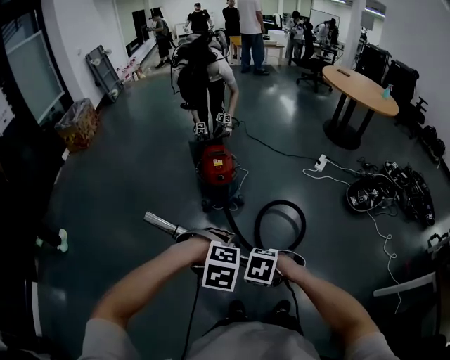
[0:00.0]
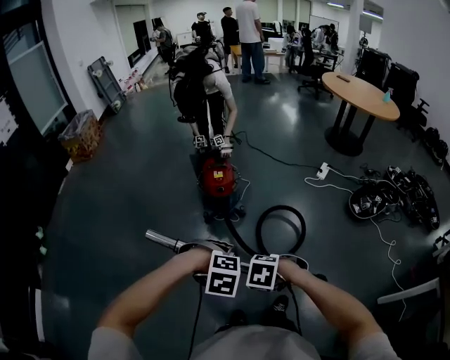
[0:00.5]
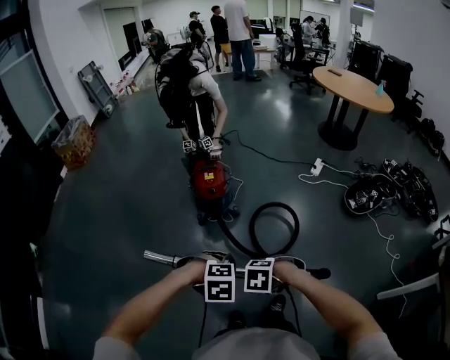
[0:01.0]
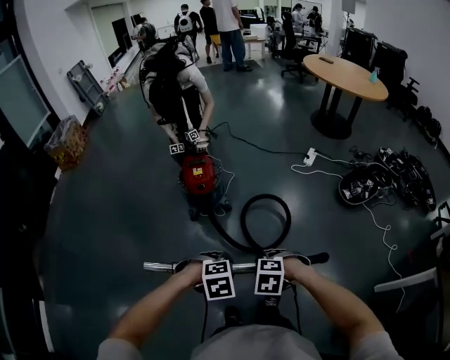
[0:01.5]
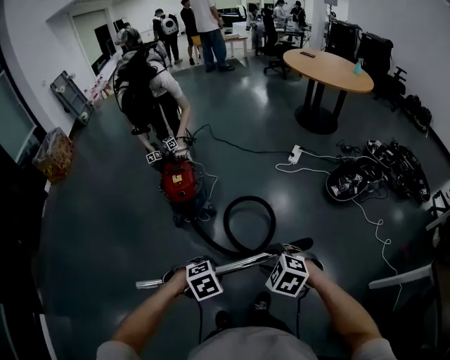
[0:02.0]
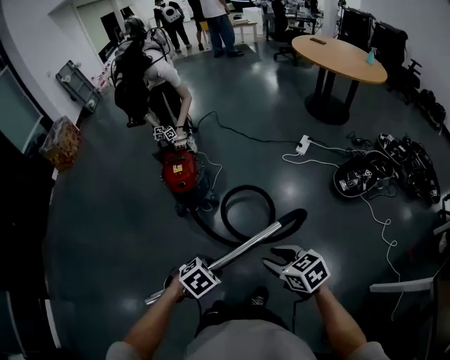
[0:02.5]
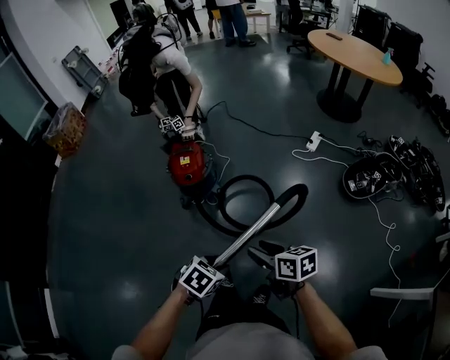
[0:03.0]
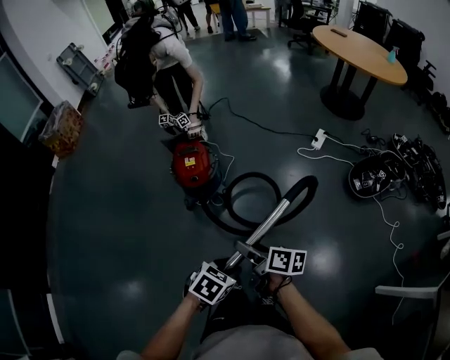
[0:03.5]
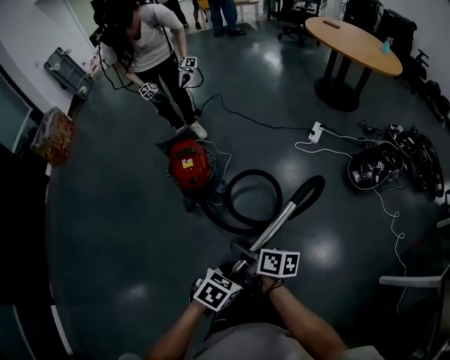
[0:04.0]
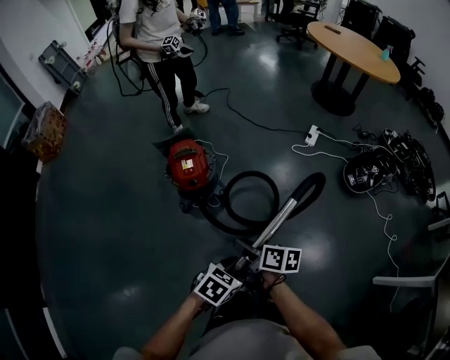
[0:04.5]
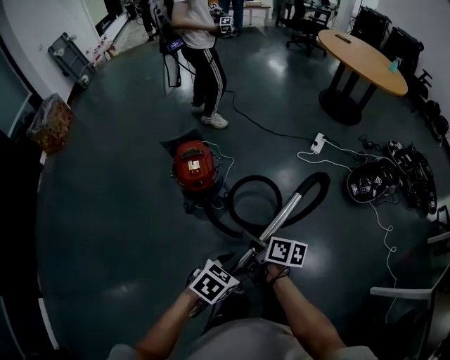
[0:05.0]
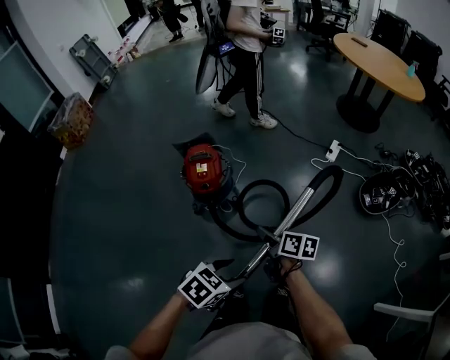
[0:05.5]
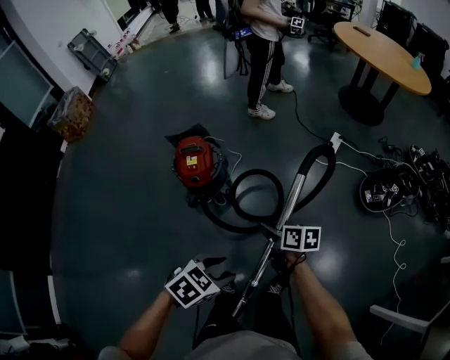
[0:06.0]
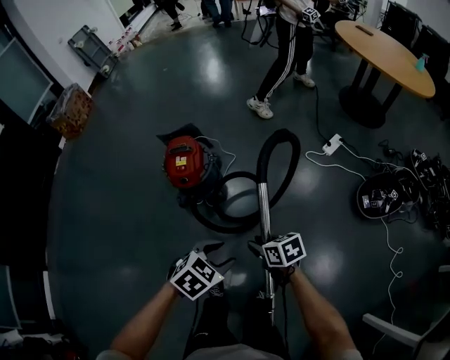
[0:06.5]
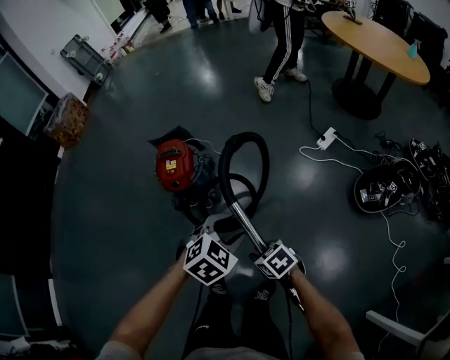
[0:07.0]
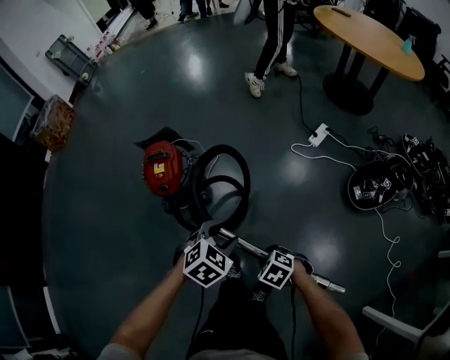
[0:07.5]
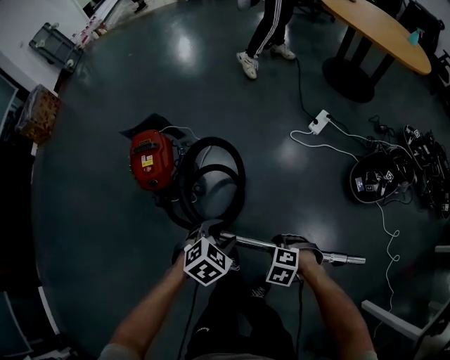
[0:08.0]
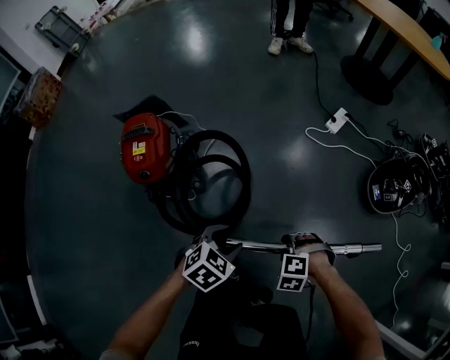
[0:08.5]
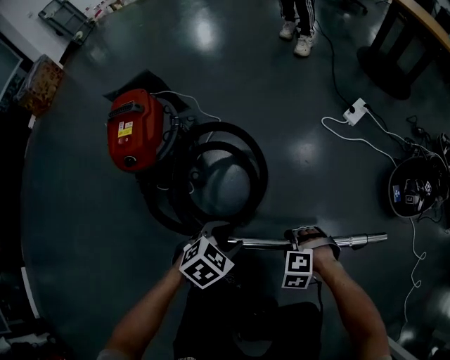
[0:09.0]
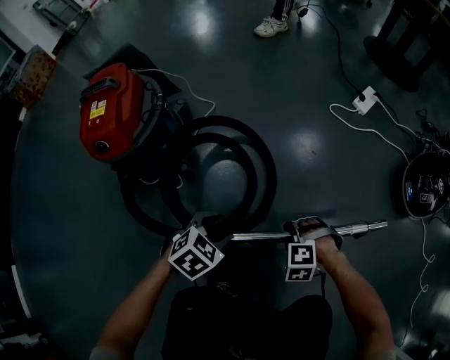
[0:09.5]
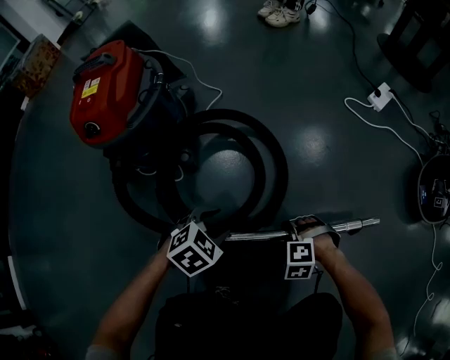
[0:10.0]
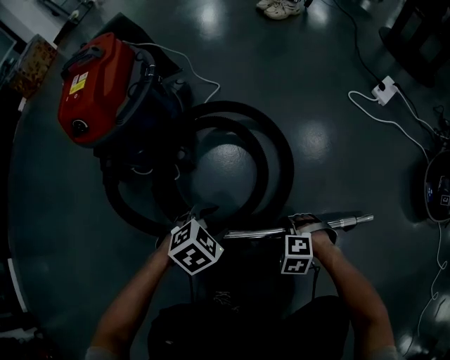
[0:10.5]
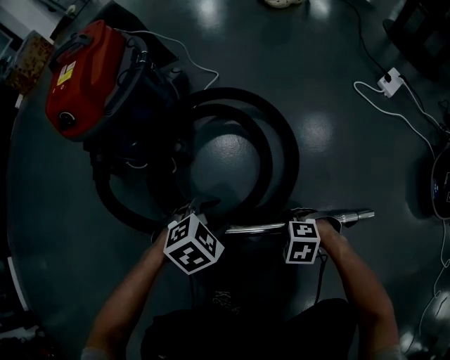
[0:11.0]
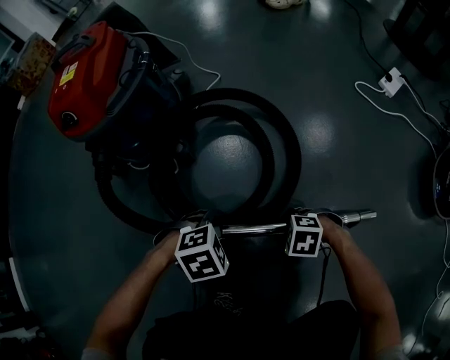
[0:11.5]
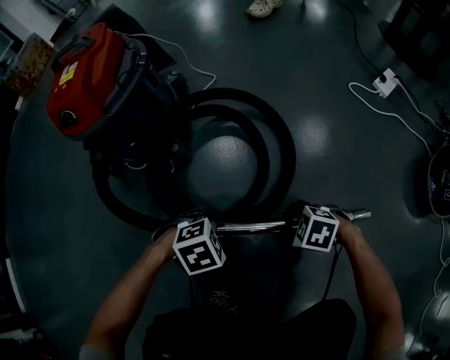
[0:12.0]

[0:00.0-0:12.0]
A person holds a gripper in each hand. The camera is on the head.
0:00.0 to 0:02.0: The left gripper changes place by roughly 20 cm, and swivels some 30 degrees. Meanwhile the right gripper changes place by some 25 cm, and rotates some 30 degrees.
0:02.0 to 0:04.0: The left gripper moves roughly 10 cm, and rotates roughly 40 degrees. Meanwhile the right gripper ends up some 25 cm from where it was, and rotates around the line of its fingers by about 90 degrees, clockwise from behind.
0:04.0 to 0:06.0: The right gripper is displaced forward and to the right by roughly 20 cm; the left gripper travels forward by about 5 cm.
0:06.0 to 0:08.0: The left gripper ends up about 30 cm from where it was, while the right gripper is displaced downward by roughly 15 cm, and rotates around the line of its fingers by about 80 degrees, counterclockwise from behind.
0:08.0 to 0:10.0: The two grippers go approximately 50 cm downward. The right gripper rotates about 30 degrees.
0:10.0 to 0:12.0: The left gripper shifts some 5 cm downward, and changes its angle by some 20 degrees. The right gripper rotates approximately 30 degrees, and opens up.

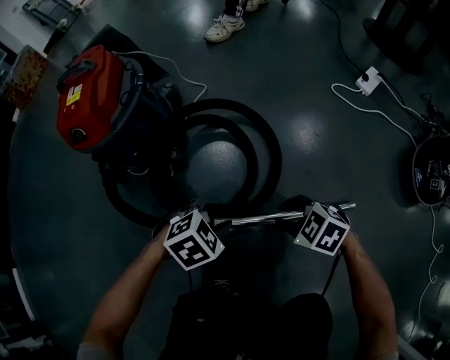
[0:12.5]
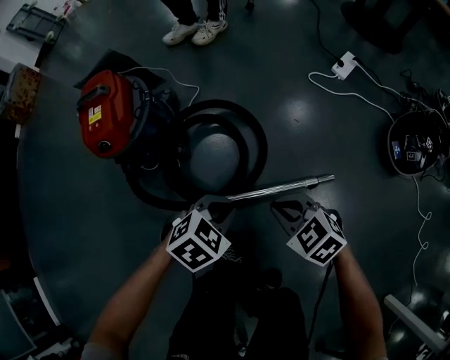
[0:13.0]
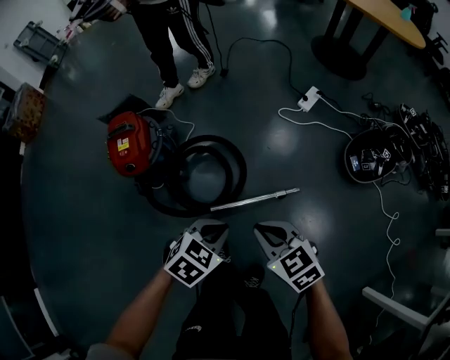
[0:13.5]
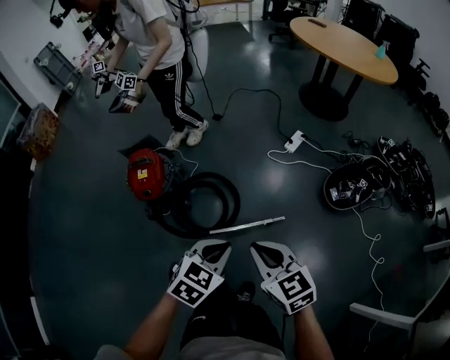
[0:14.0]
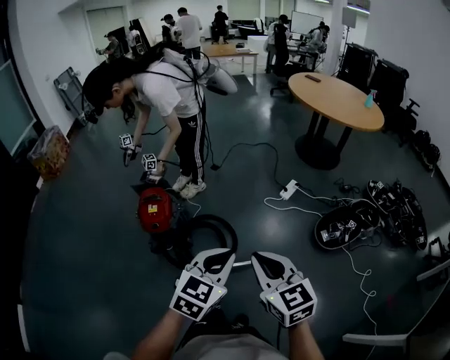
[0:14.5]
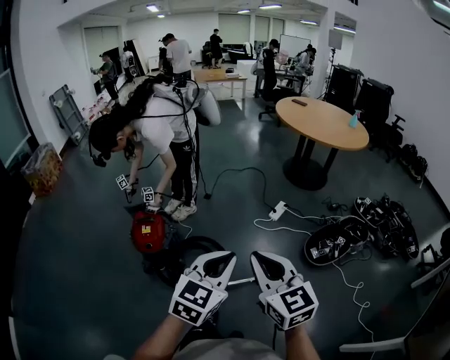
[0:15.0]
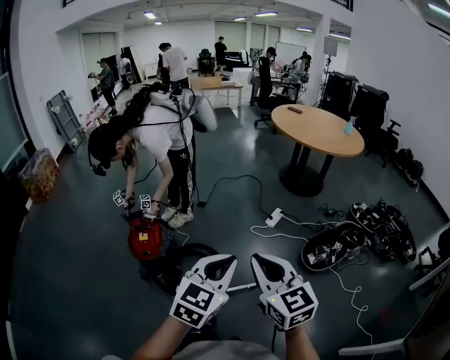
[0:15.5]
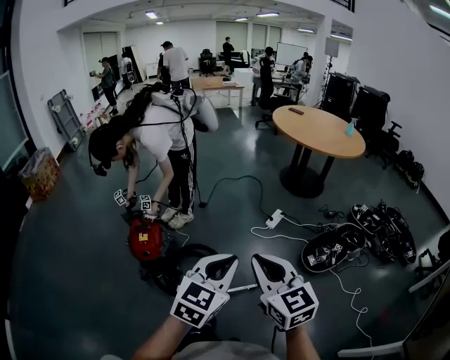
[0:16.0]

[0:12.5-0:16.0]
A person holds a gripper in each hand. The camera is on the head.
0:12.5 to 0:14.5: The grippers both shift upward by some 80 cm. The right gripper tilts its fingers some 40 degrees upward, and closes; the left gripper points its fingers roughly 40 degrees further upward, and closes.
0:14.5 to 0:16.0: The two grippers go about 10 cm upward.

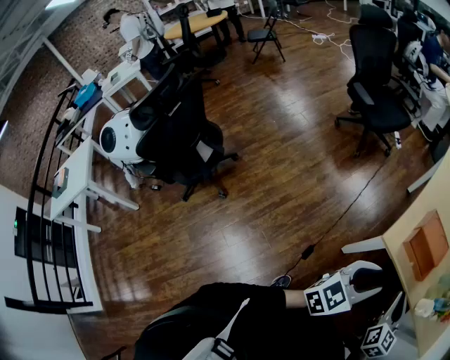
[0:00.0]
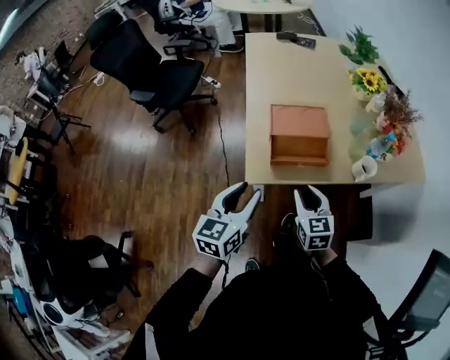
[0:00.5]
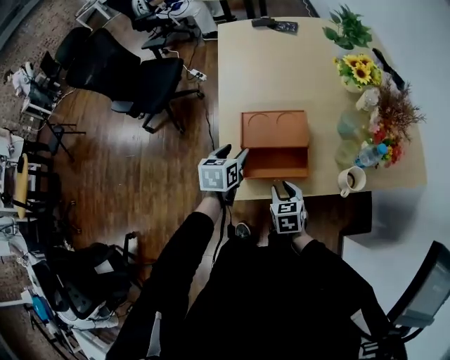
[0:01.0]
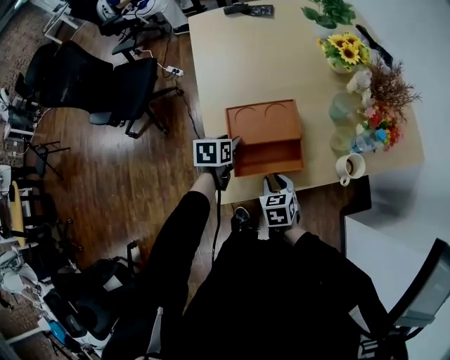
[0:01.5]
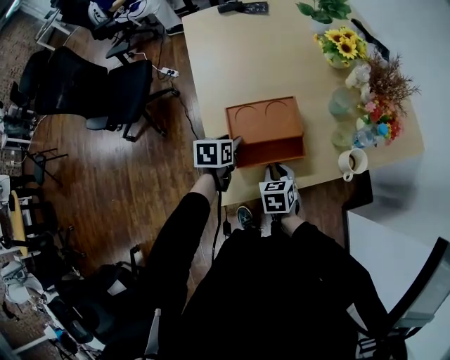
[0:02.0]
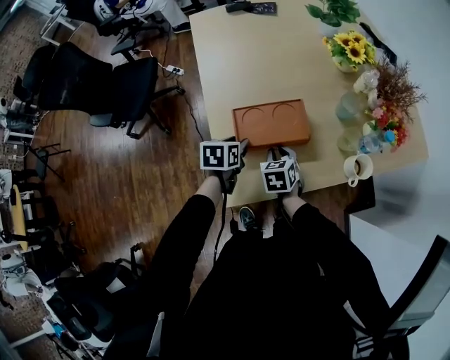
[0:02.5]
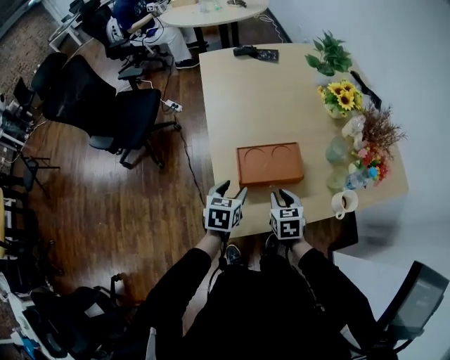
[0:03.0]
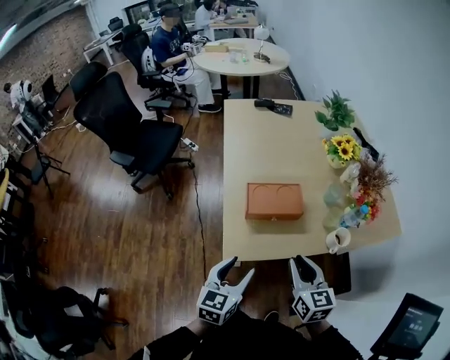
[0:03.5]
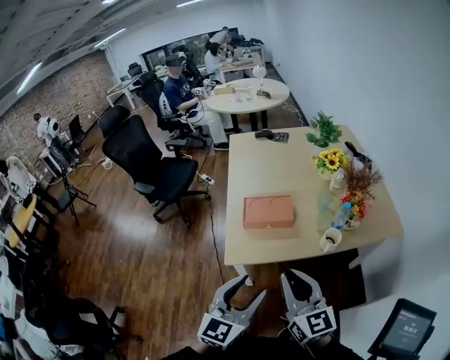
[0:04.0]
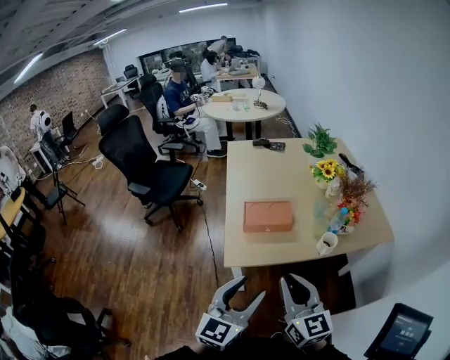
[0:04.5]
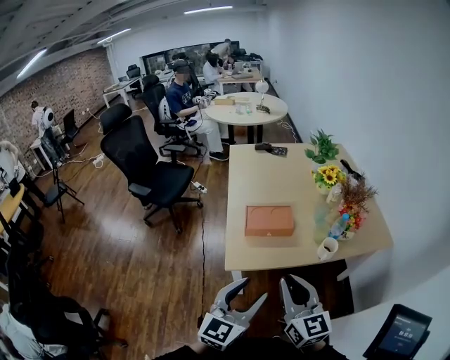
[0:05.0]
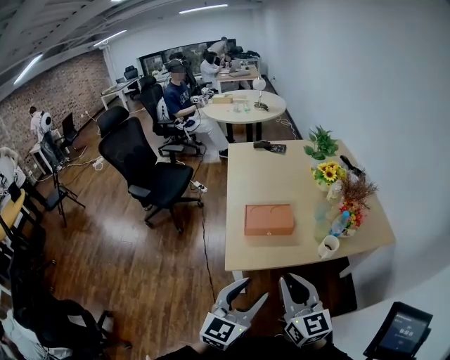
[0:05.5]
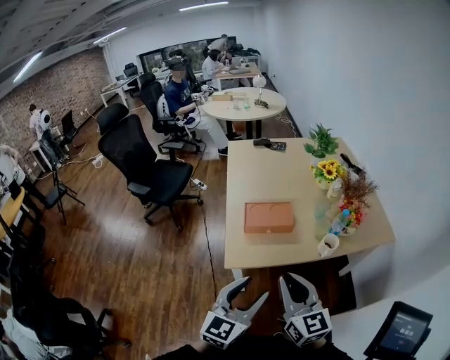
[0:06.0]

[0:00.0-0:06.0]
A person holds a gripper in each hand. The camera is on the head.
0:00.0 to 0:02.0: The grippers both shift forward and downward by about 50 cm. The right gripper angles its fingers downward, by roughly 30 degrees. Meanwhile the left gripper tilts its fingers about 50 degrees downward.
0:02.0 to 0:04.0: The right gripper is displaced upward and backward by some 40 cm, and tips its fingers upward by approximately 50 degrees. Meanwhile the left gripper is displaced backward and upward by roughly 50 cm, and tilts its fingers about 40 degrees upward.
0:04.0 to 0:06.0: The grippers move only a little.

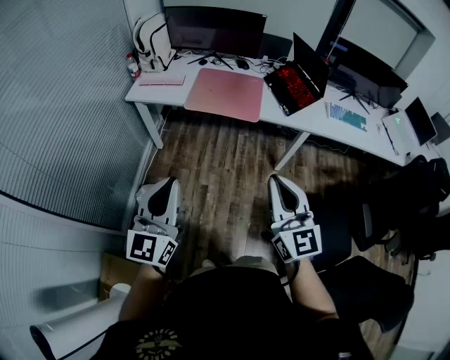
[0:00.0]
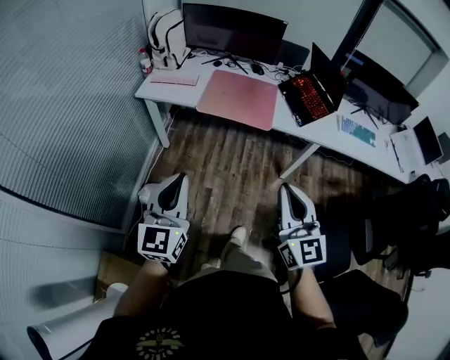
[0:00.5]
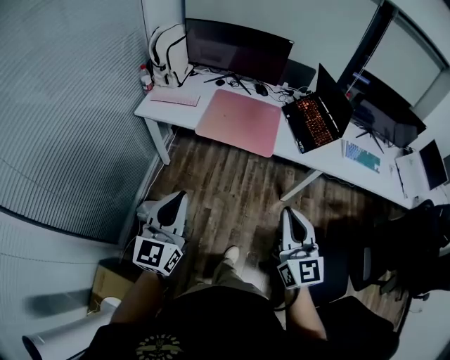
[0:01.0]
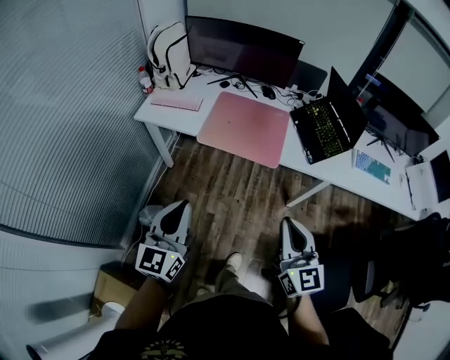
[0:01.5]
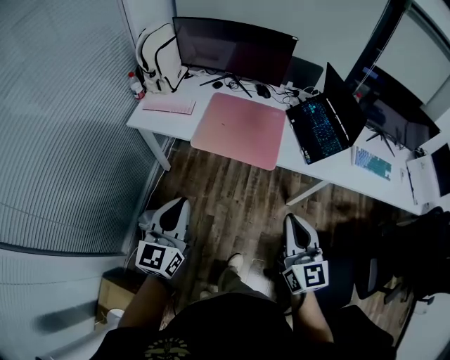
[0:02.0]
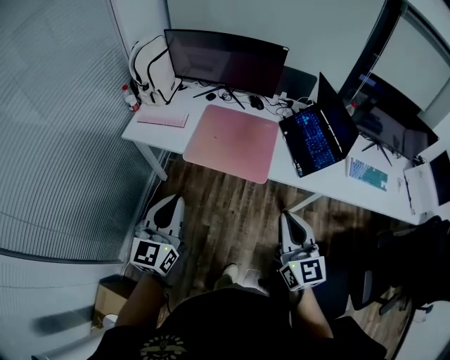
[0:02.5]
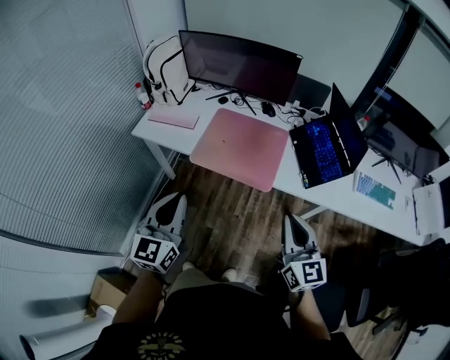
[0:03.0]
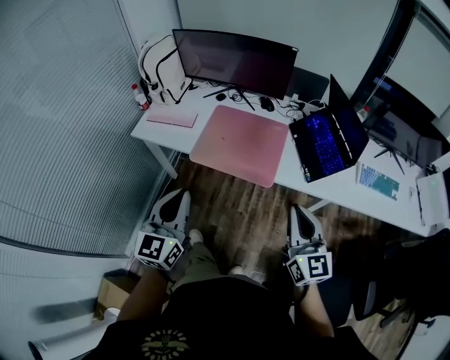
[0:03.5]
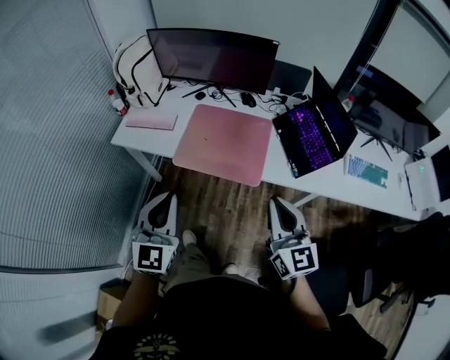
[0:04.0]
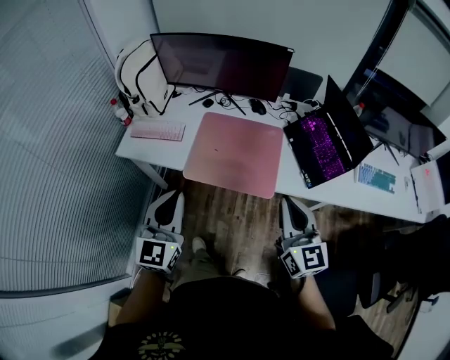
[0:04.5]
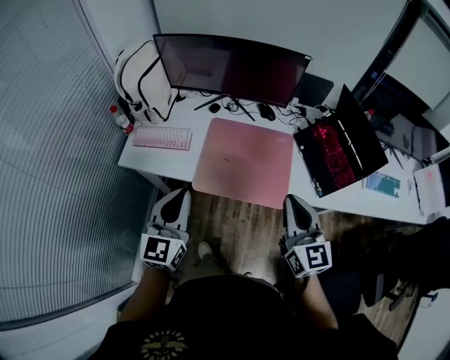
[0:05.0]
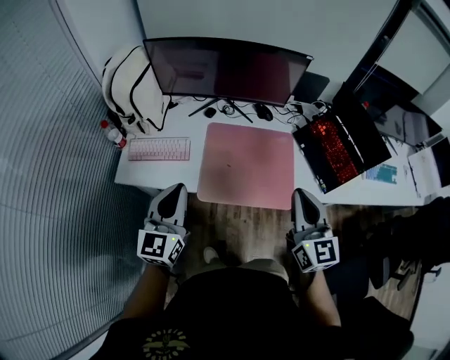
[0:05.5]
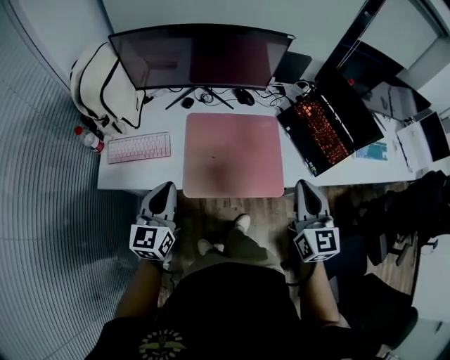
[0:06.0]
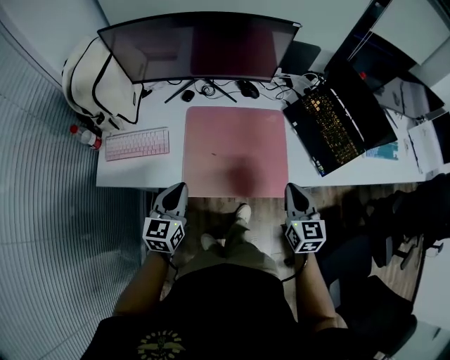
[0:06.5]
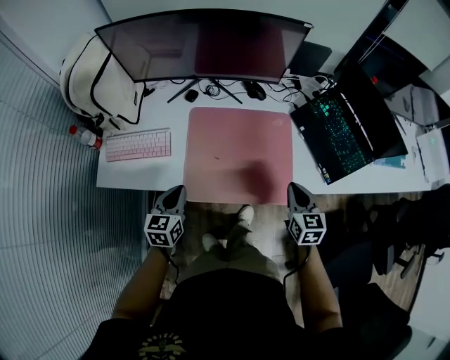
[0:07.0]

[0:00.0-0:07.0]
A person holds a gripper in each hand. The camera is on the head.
0:00.0 to 0:02.0: The two grippers go some 25 cm forward.
0:02.0 to 0:03.5: Both grippers travel together forward and to the right, roughly 10 cm.
0:03.5 to 0:05.0: Both grippers travel together forward and to the left, roughly 20 cm.
0:05.0 to 0:07.0: The two grippers go roughly 30 cm downward and forward. The right gripper rotates about 30 degrees; the left gripper rotates some 30 degrees.
